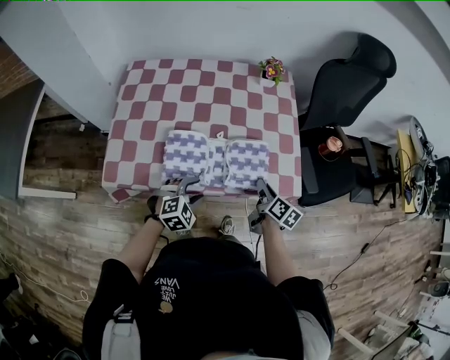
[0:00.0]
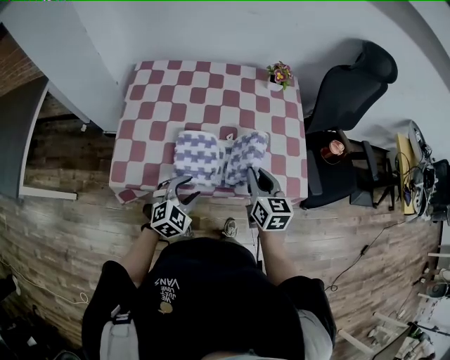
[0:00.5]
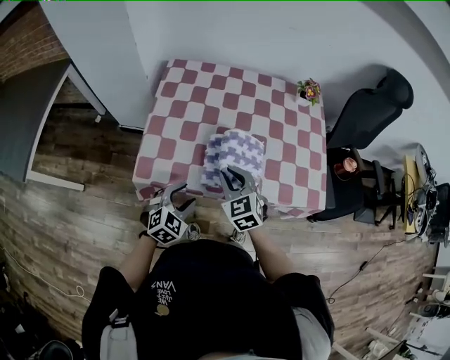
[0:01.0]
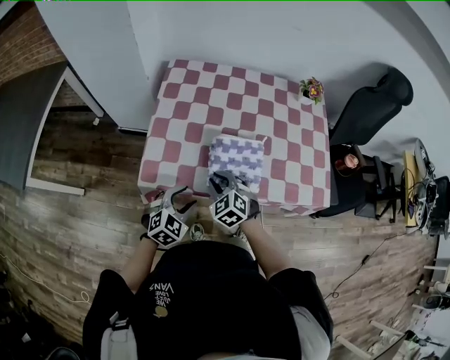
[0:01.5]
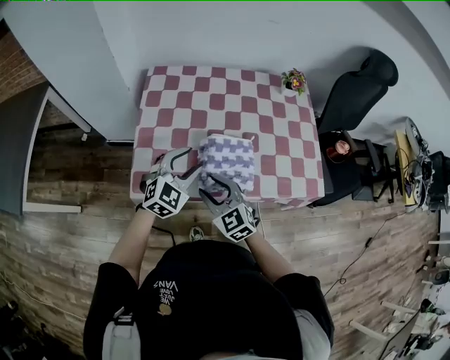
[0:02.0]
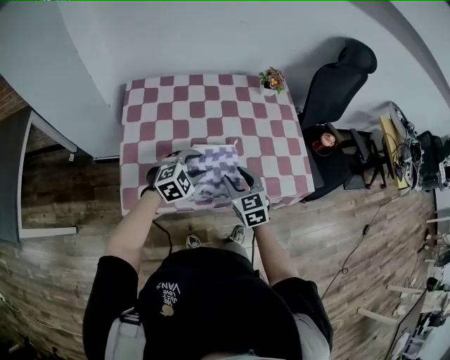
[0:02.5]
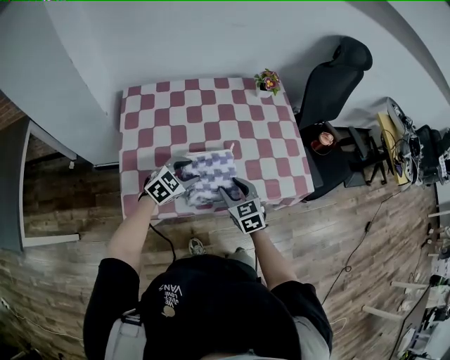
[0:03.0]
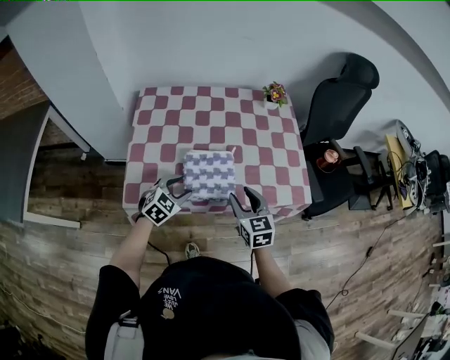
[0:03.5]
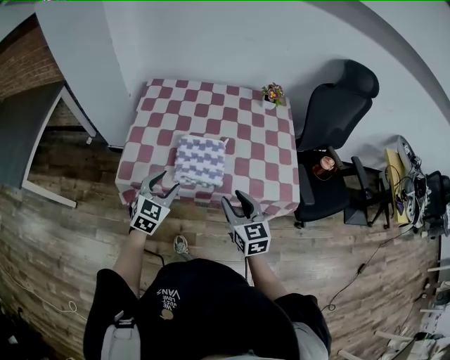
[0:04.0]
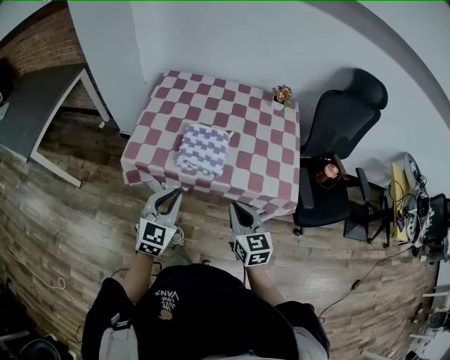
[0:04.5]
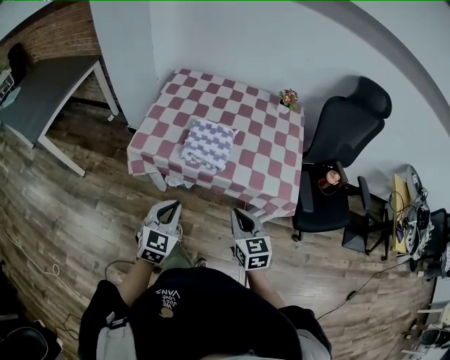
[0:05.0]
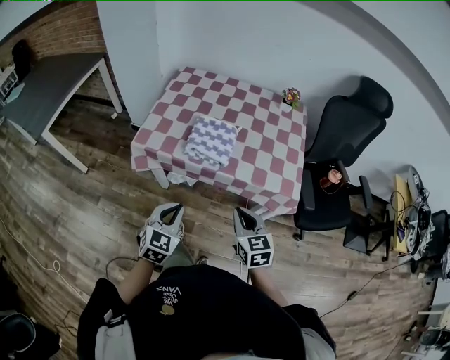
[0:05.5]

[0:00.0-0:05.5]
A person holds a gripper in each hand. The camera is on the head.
0:00.0 to 0:02.0: The right gripper heads to the left, covering approximately 35 cm, rolls counterclockwise, seen from behind, by approximately 80 degrees, and opens up, while the left gripper shifts about 25 cm to the left, upward and forward, and rotates approximately 30 degrees.
0:02.0 to 0:03.5: The left gripper is displaced downward by roughly 10 cm. Meanwhile the right gripper moves to the right, some 15 cm, and changes its angle by approximately 30 degrees.
0:03.5 to 0:05.5: The left gripper moves approximately 30 cm, turns by roughly 40 degrees, and closes. The right gripper ends up about 20 cm from where it was, and closes its fingers.

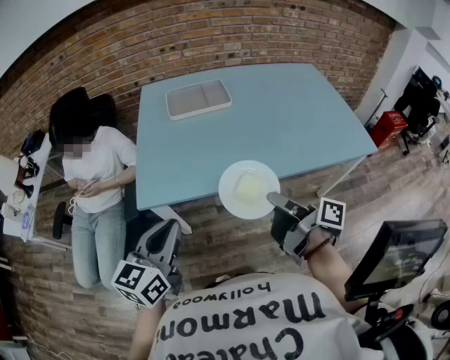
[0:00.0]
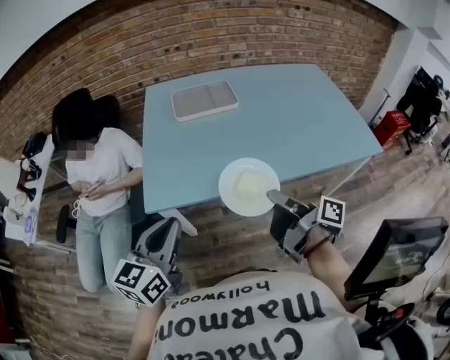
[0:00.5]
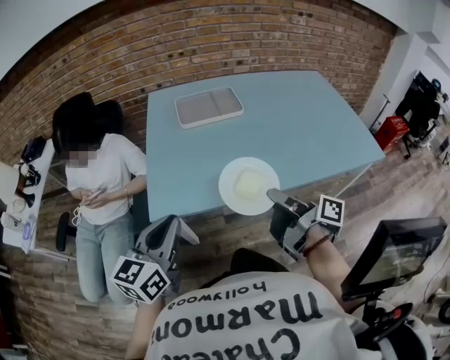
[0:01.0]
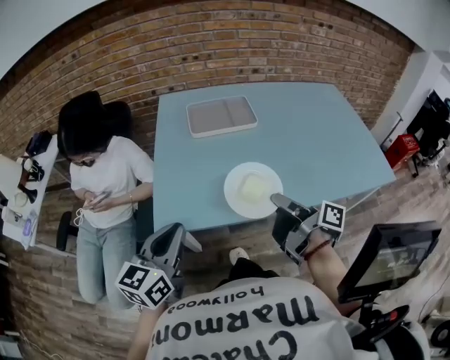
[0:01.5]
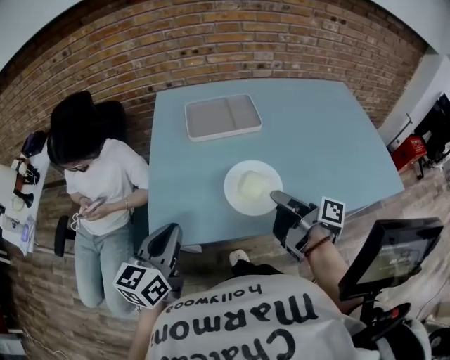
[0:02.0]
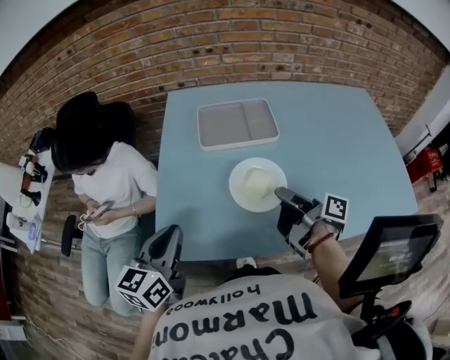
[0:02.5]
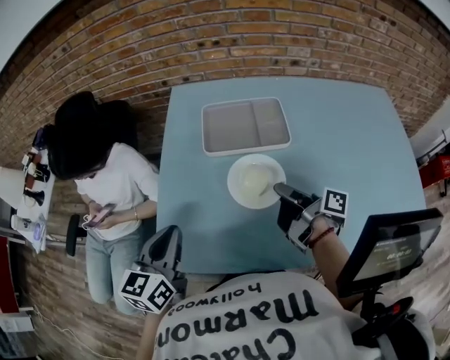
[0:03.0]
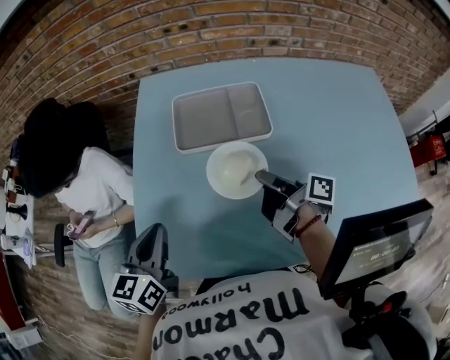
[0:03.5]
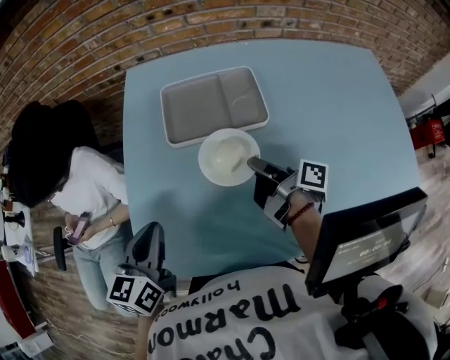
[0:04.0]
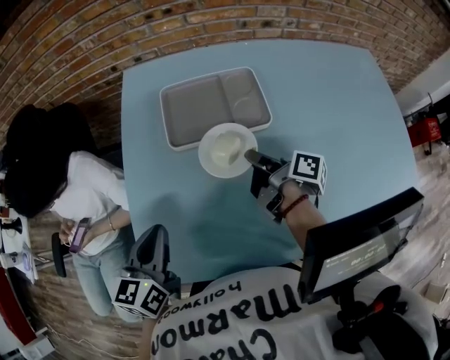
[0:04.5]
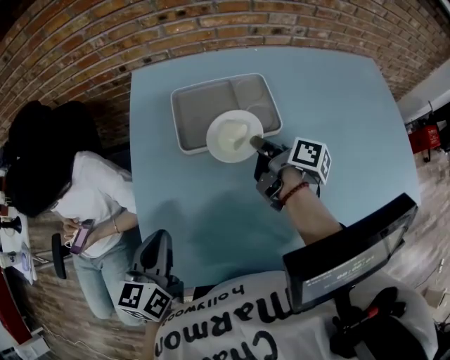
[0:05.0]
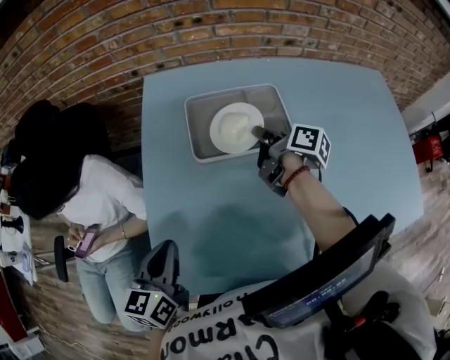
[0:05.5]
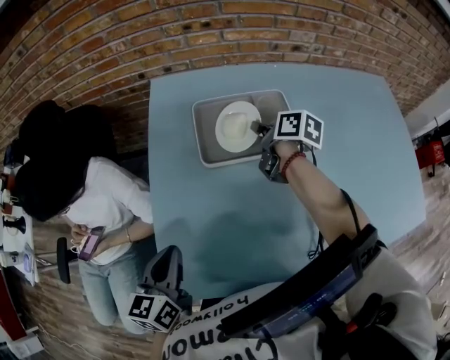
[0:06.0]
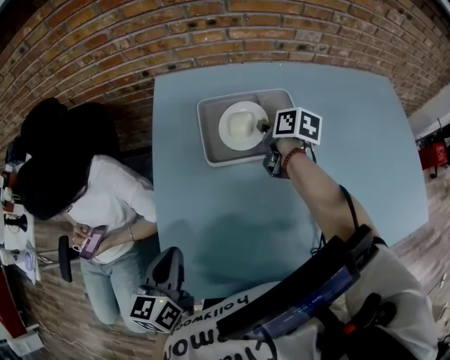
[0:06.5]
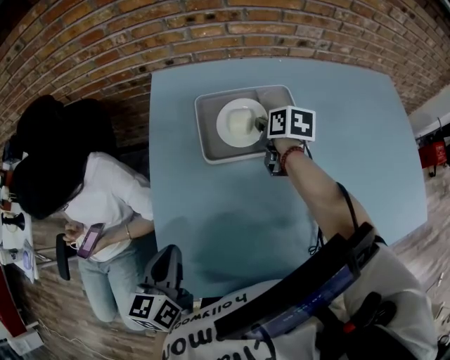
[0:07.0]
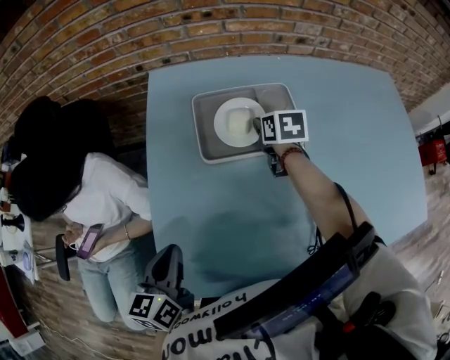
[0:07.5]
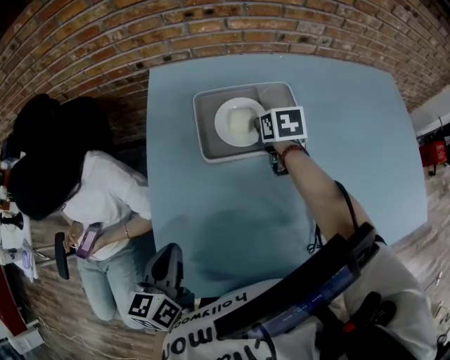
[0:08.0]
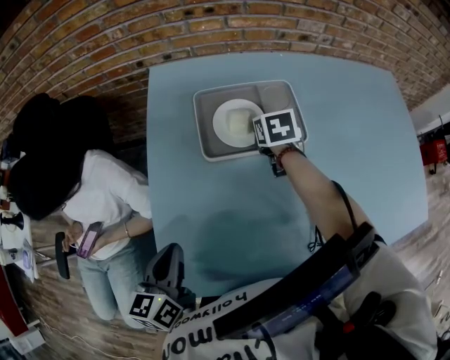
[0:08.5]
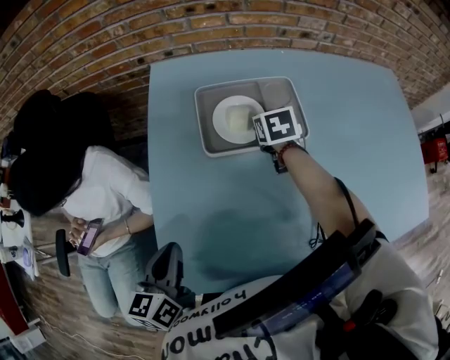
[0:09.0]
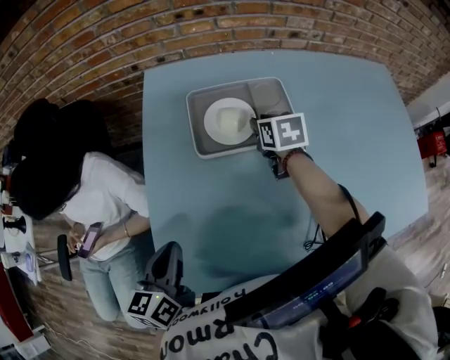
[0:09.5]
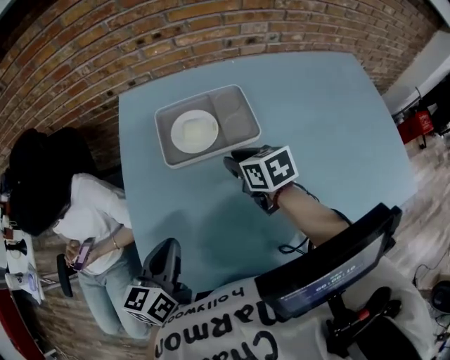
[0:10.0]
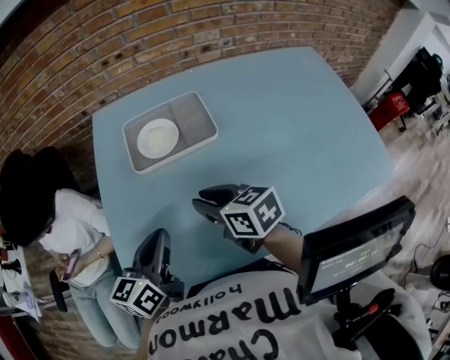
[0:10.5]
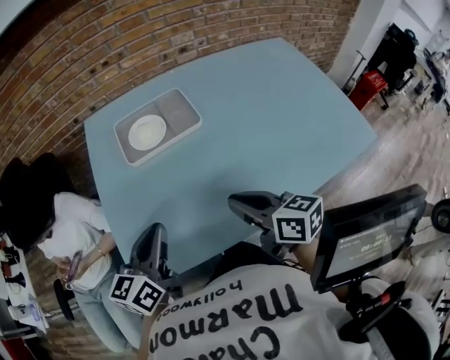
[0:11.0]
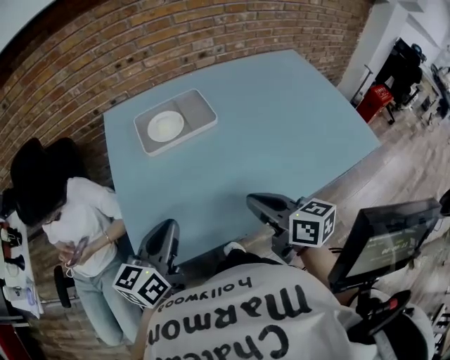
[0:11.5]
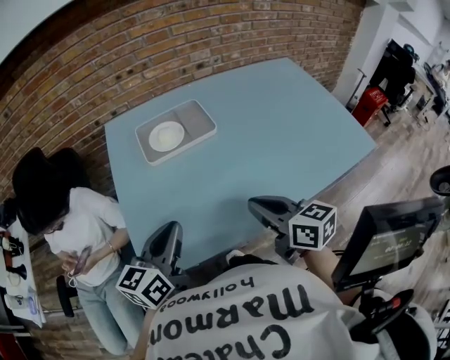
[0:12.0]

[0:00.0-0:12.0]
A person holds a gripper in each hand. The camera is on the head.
0:00.0 to 0:02.0: The two grippers go approximately 20 cm forward.
0:02.0 to 0:04.0: Both grippers travel together forward, about 20 cm.
0:04.0 to 0:06.0: The right gripper heads forward, covering approximately 20 cm, and turns by about 40 degrees. The left gripper heads to the left, covering roughly 5 cm.
0:06.0 to 0:08.0: The right gripper moves some 5 cm, and turns by approximately 40 degrees.
0:08.0 to 0:10.0: The right gripper goes some 15 cm backward, while the left gripper moves to the right, approximately 10 cm.
0:10.0 to 0:12.0: The left gripper moves backward and upward, approximately 10 cm, and rotates roughly 20 degrees. Meanwhile the right gripper moves backward, about 30 cm, rotates approximately 30 degrees, and closes its fingers.

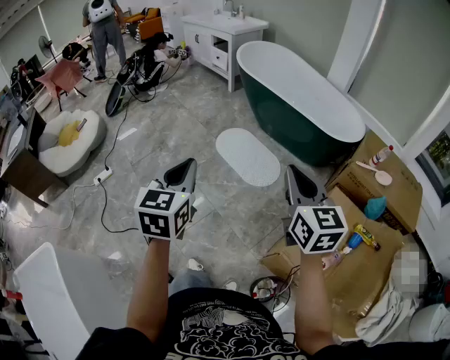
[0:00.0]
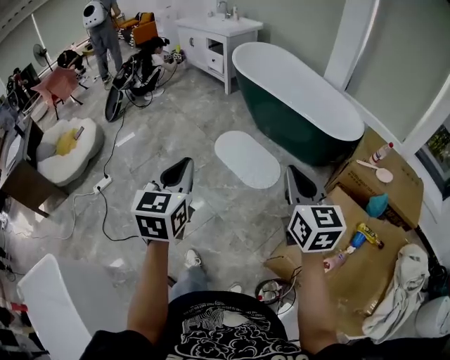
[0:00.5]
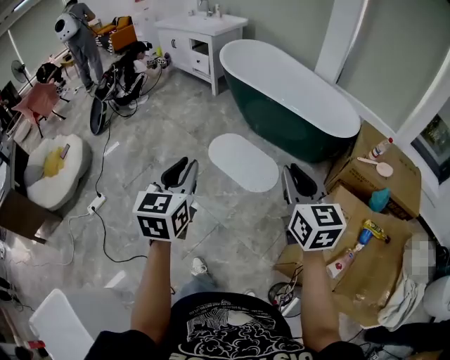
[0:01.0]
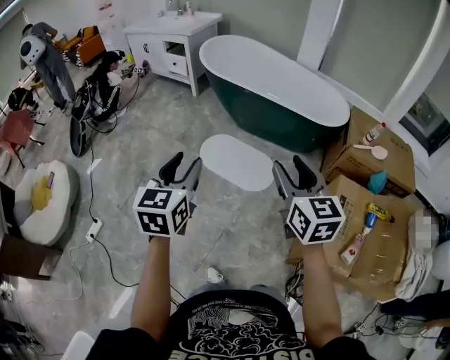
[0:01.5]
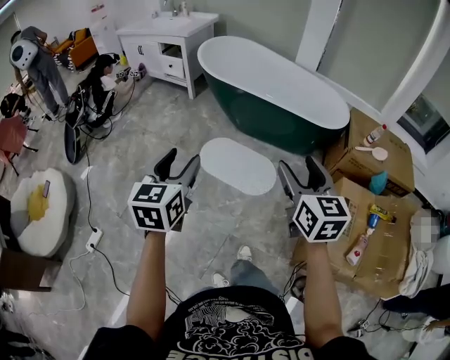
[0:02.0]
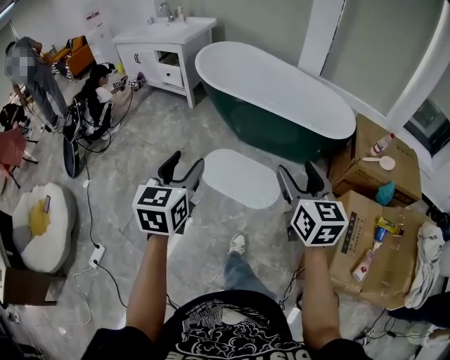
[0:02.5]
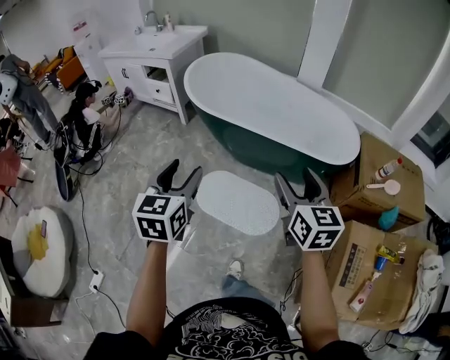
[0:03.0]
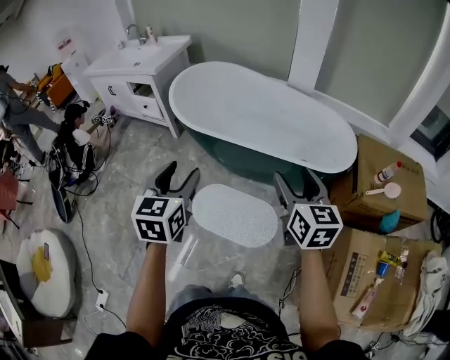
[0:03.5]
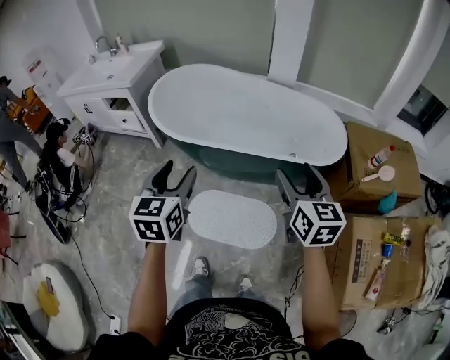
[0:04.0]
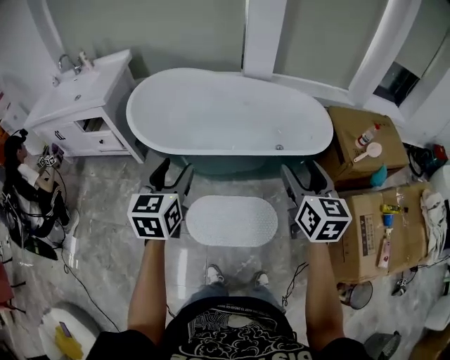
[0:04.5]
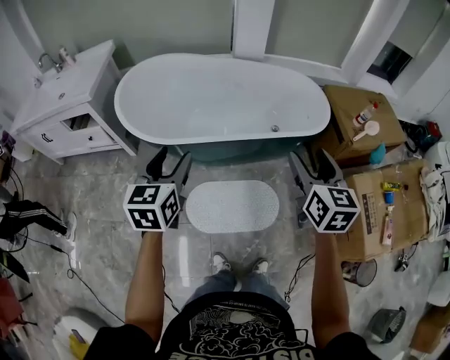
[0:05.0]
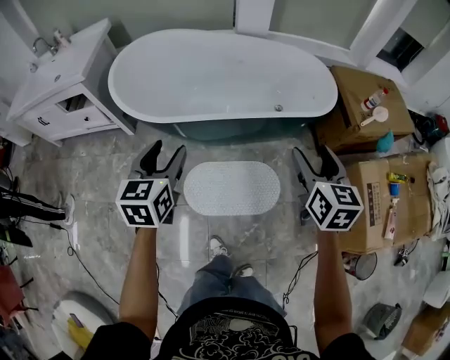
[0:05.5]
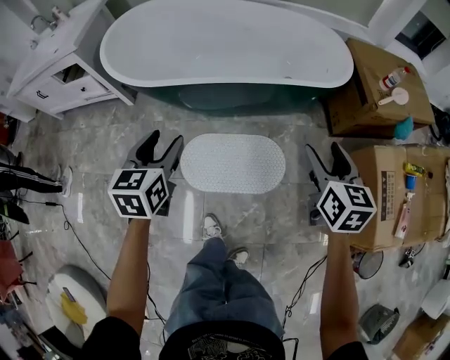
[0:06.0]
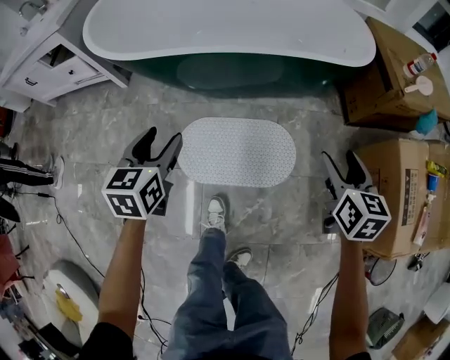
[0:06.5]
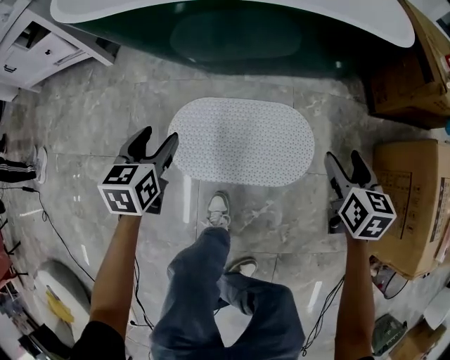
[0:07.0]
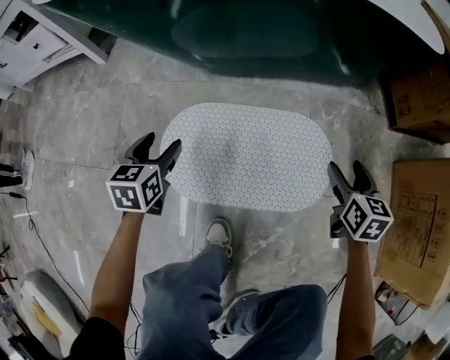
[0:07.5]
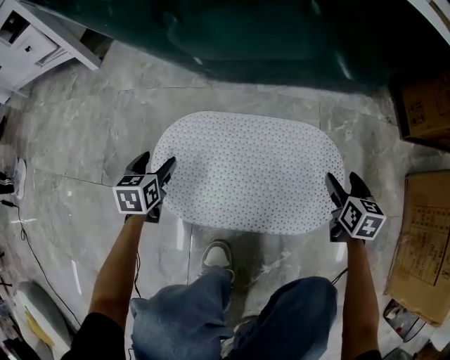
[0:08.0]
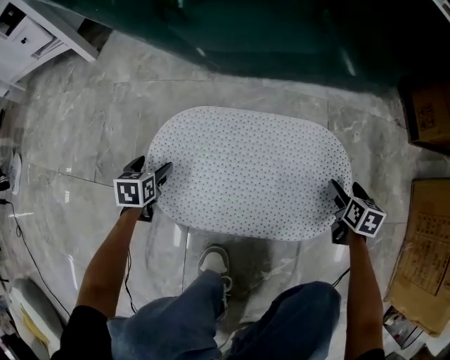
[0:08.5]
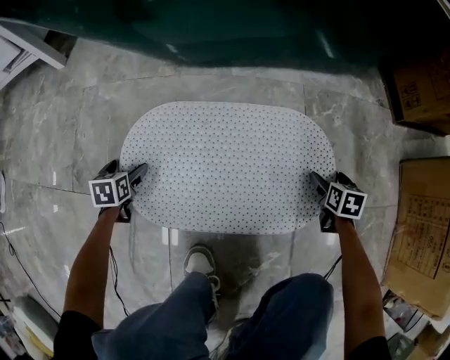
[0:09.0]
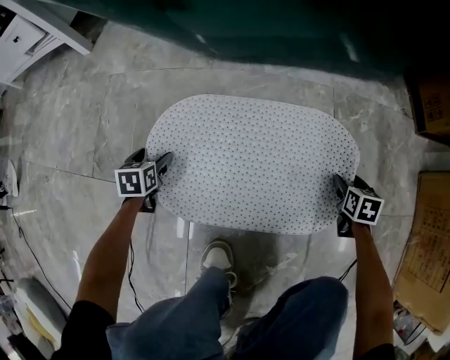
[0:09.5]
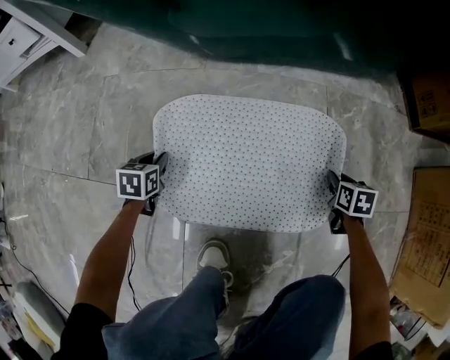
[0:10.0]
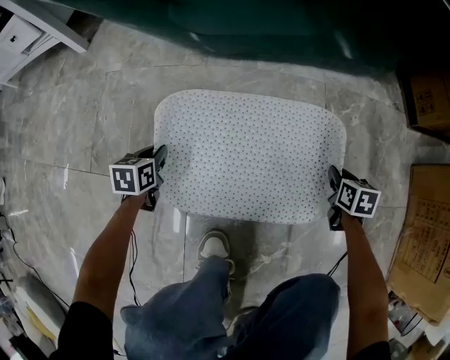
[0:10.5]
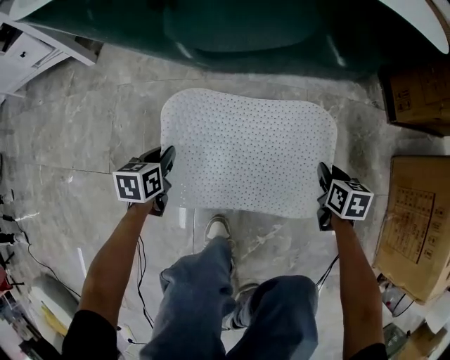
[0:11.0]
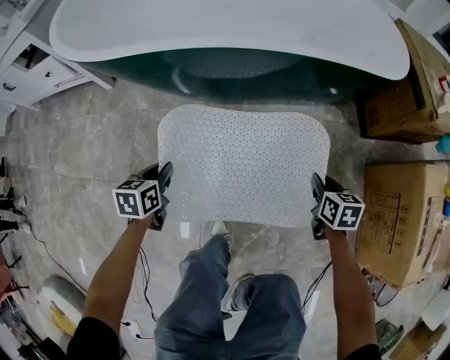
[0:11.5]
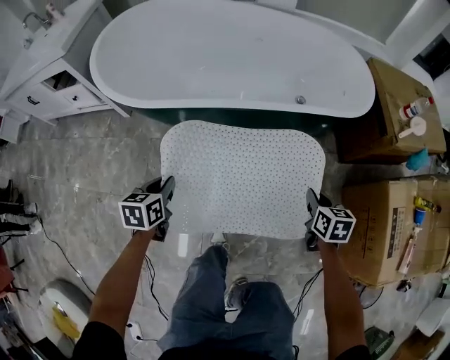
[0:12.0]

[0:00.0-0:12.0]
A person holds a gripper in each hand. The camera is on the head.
0:00.0 to 0:02.0: The two grippers go some 30 cm forward and to the left. The left gripper opens its fingers. The right gripper changes its angle by approximately 20 degrees, and opens its fingers.
0:02.0 to 0:04.0: The pair of grippers is taken forward, about 40 cm.
0:04.0 to 0:06.0: The two grippers go approximately 20 cm downward. The right gripper swivels approximately 20 degrees.
0:06.0 to 0:08.0: The two grippers go approximately 70 cm downward.
0:08.0 to 0:10.0: The two grippers go some 10 cm downward. The left gripper closes up, while the right gripper closes its fingers.
0:10.0 to 0:12.0: Both grippers move upward, approximately 60 cm.
